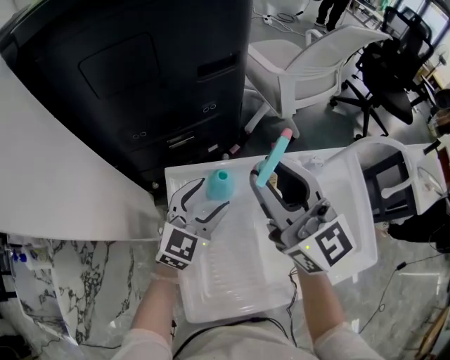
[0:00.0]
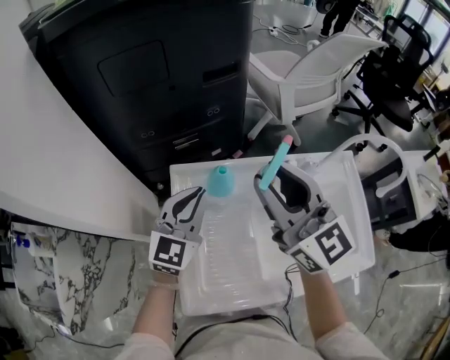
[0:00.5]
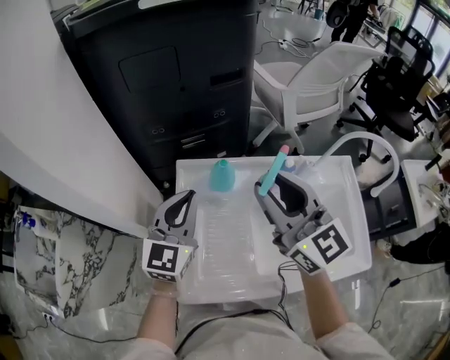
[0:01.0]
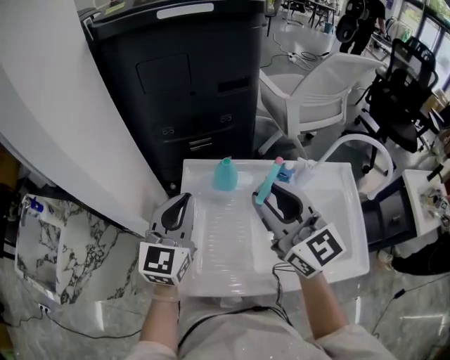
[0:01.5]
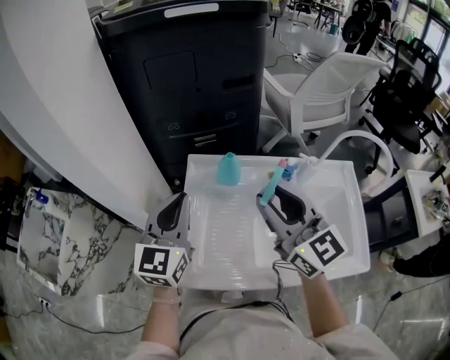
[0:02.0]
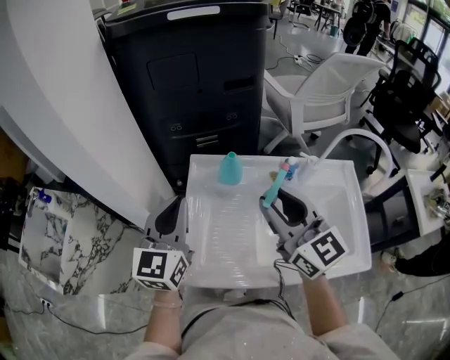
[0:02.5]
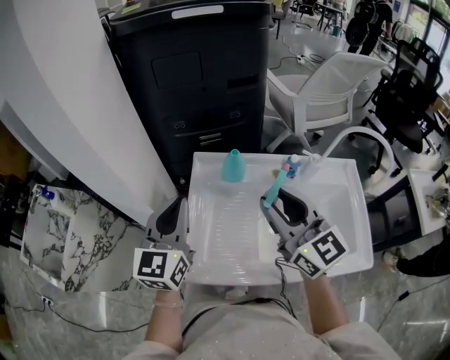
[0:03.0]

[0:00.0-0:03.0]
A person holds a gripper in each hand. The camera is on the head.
0:00.0 to 0:01.5: The left gripper goes about 15 cm upward, backward and to the left, changes its angle by roughly 30 degrees, and closes, while the right gripper travels backward by some 10 cm.
0:01.5 to 0:03.0: The left gripper ends up roughly 5 cm from where it was.

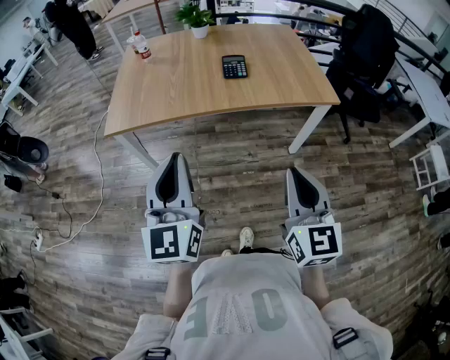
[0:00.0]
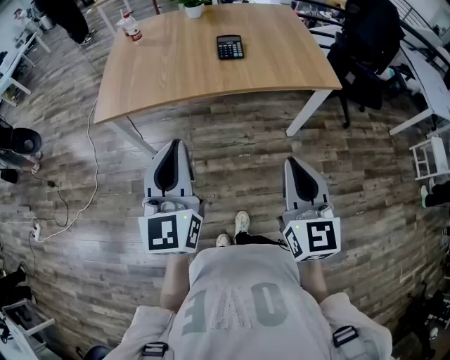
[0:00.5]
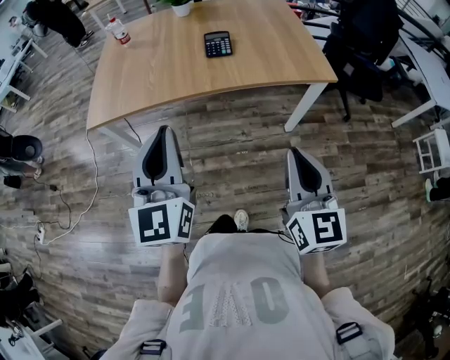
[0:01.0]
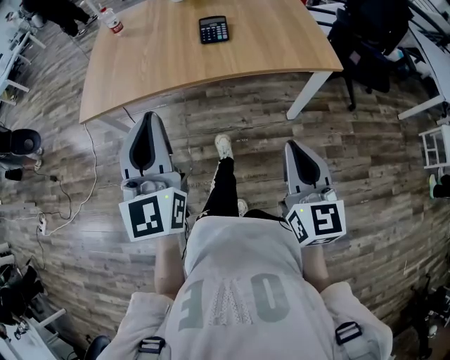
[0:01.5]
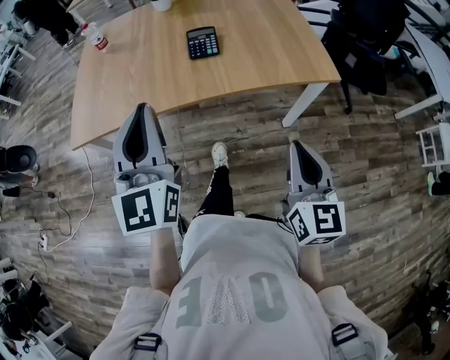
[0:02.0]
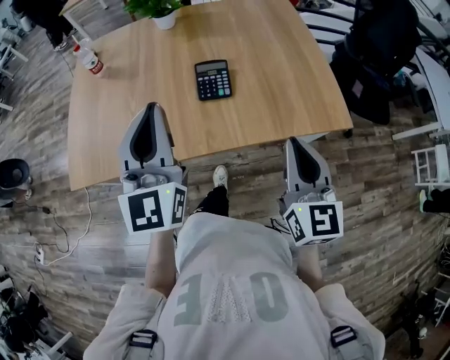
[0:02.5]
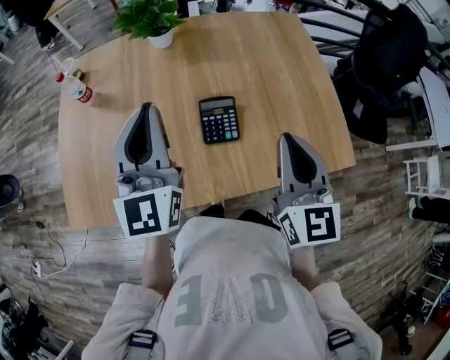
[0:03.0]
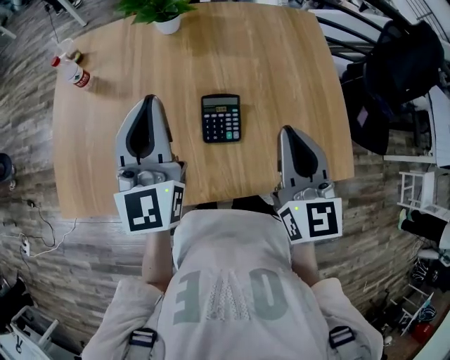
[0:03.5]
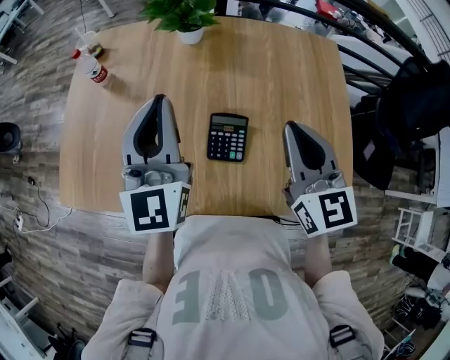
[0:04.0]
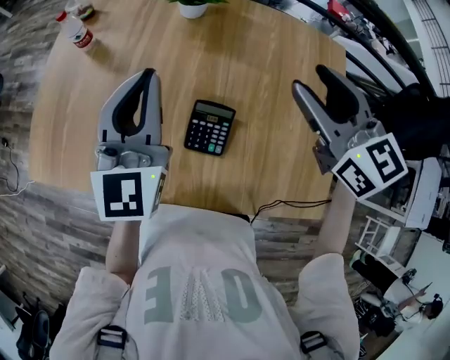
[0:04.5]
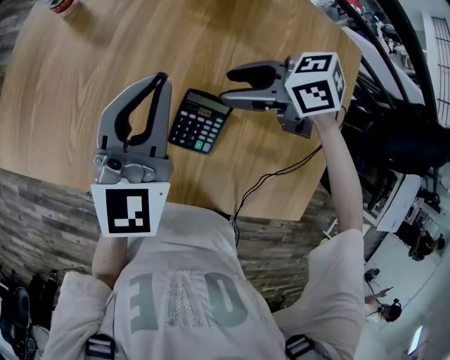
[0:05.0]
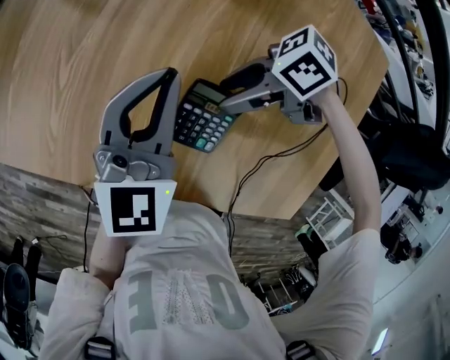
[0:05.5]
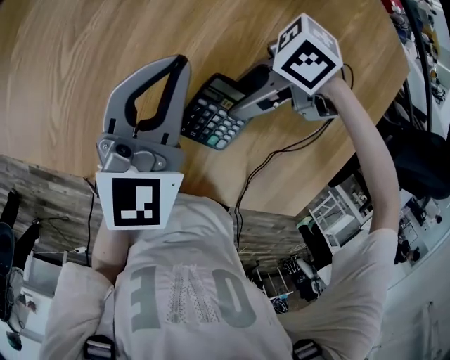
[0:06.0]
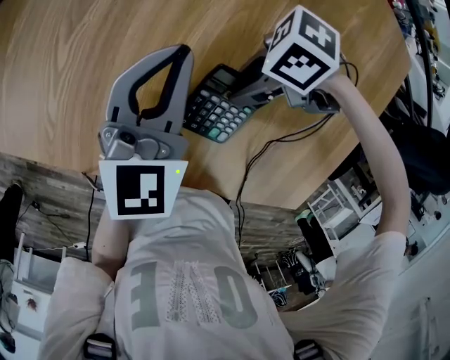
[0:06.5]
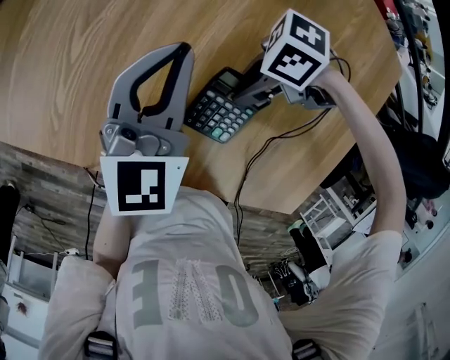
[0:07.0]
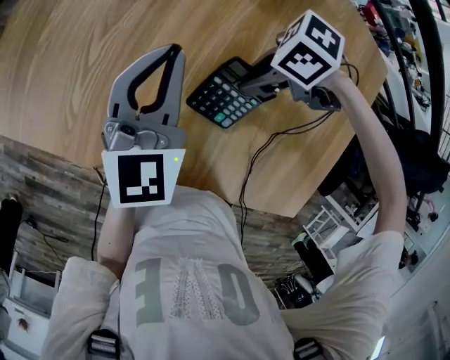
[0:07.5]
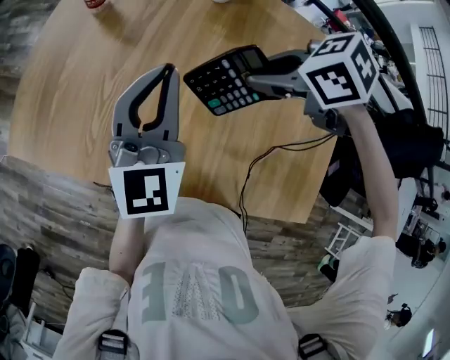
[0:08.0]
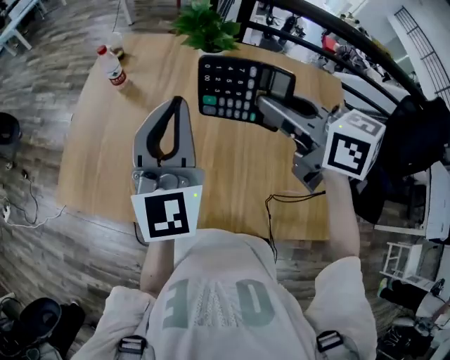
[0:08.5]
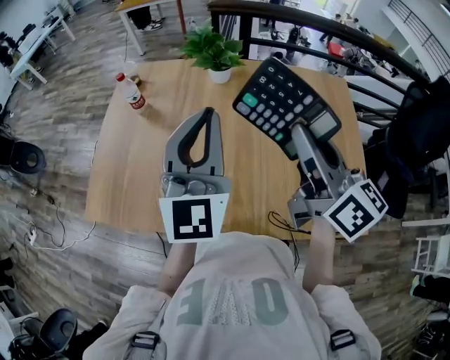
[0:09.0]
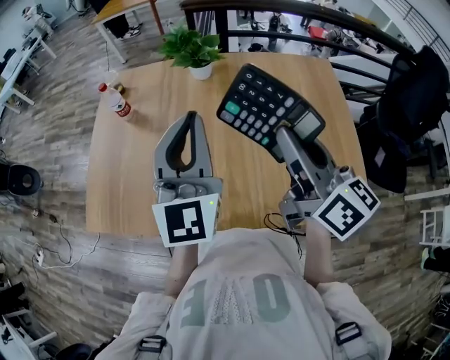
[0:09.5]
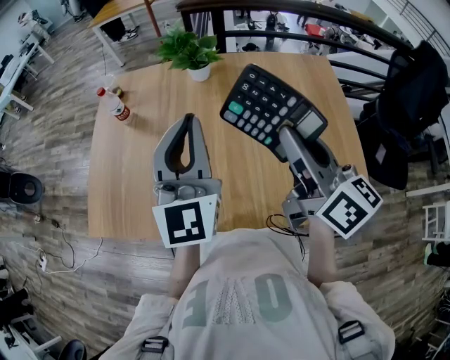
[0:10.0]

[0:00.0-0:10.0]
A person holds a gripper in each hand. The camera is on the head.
0:00.0 to 0:02.0: The left gripper moves forward and to the right, some 20 cm. Meanwhile the right gripper is displaced forward, to the right and downward by some 20 cm.
0:02.0 to 0:04.0: Both grippers are carried forward, about 40 cm. The right gripper rotates roughly 30 degrees.
0:04.0 to 0:06.0: Both grippers travel together downward, approximately 25 cm. The left gripper turns by approximately 30 degrees; the right gripper swivels approximately 130 degrees, and opens.
0:06.0 to 0:08.0: Both grippers travel together upward, about 15 cm. The right gripper angles its fingers downward, by roughly 40 degrees, and closes its fingers.
0:08.0 to 0:10.0: The left gripper goes approximately 10 cm upward. Meanwhile the right gripper ends up roughly 20 cm from where it was, and angles its fingers upward, by some 60 degrees.

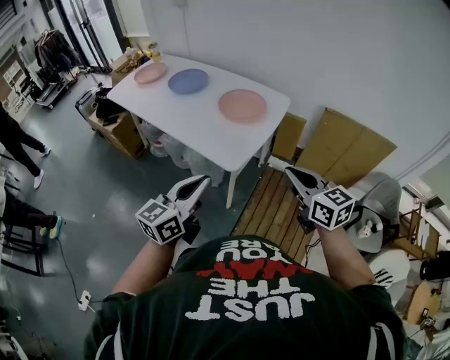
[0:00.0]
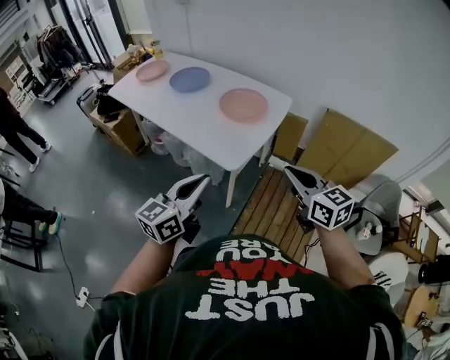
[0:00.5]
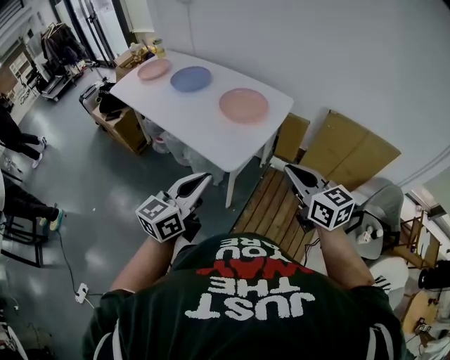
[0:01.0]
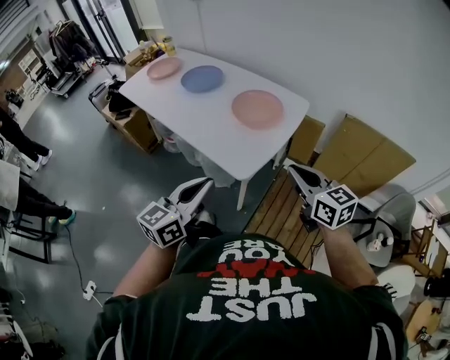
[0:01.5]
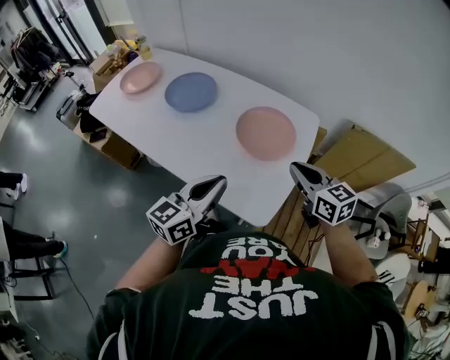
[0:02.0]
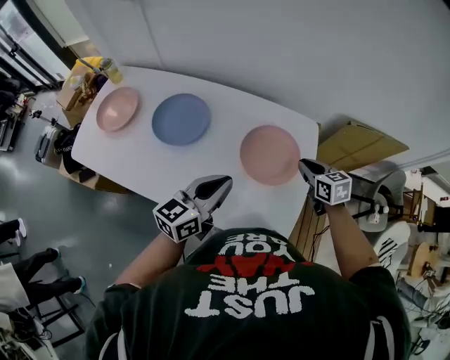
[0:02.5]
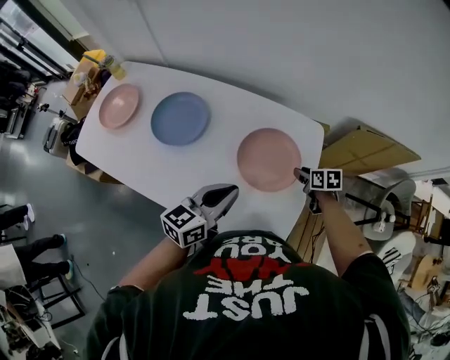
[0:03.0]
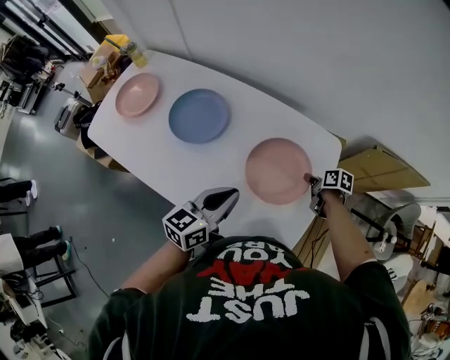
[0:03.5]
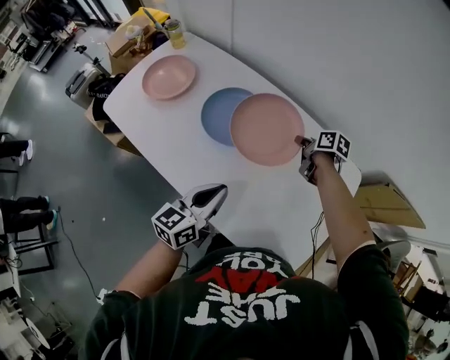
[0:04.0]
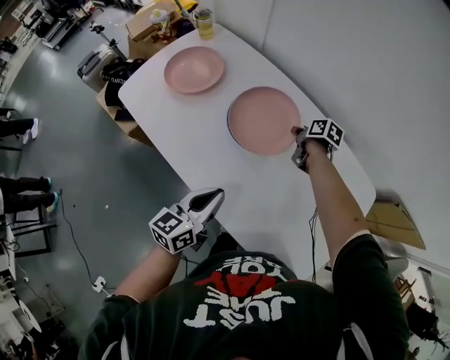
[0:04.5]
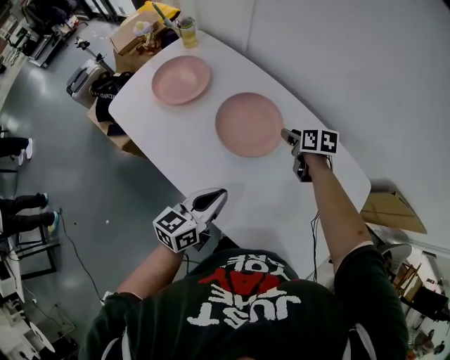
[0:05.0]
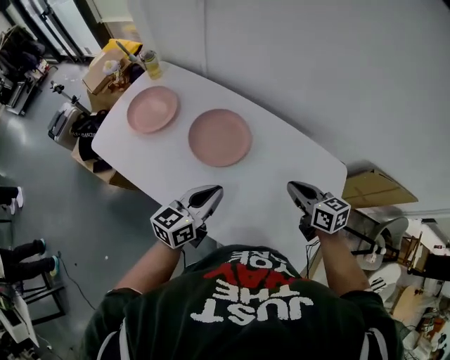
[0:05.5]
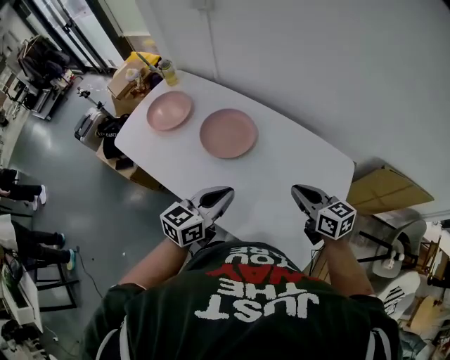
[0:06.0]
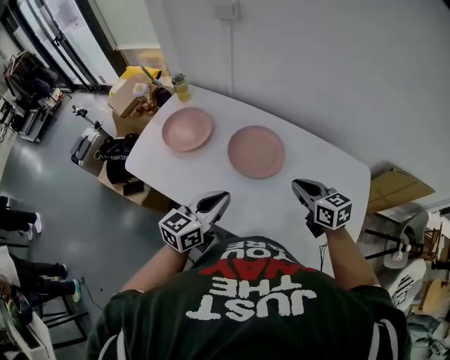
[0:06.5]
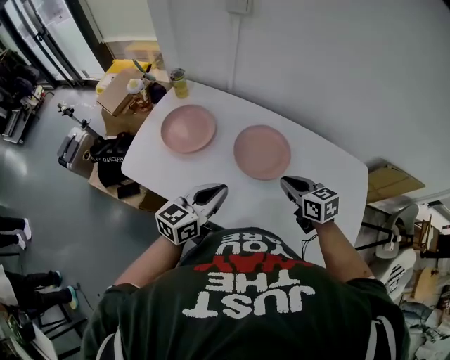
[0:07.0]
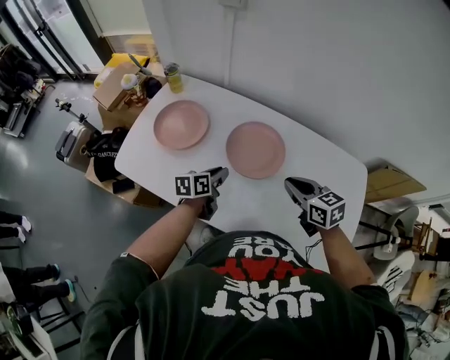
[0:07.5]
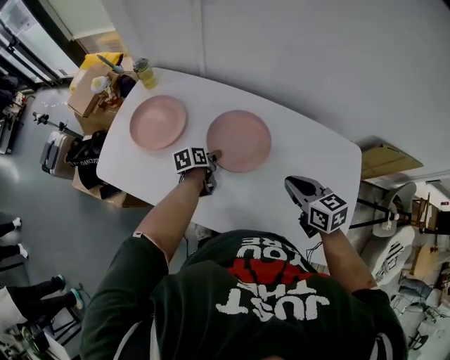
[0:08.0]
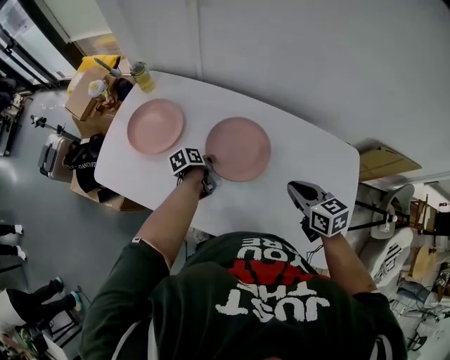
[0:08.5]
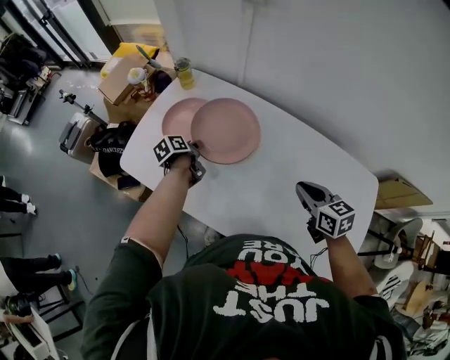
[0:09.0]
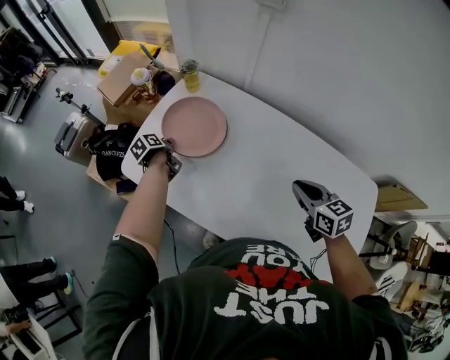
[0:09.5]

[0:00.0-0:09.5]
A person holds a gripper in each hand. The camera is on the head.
0:00.0 to 0:02.0: The two grippers go roughly 25 cm forward.
0:02.0 to 0:04.0: The left gripper heads forward and to the left, covering approximately 25 cm; the right gripper shifts some 40 cm forward, to the left and downward, rotates around the line of its fingers by some 40 degrees, clockwise from behind, and opens and closes again.
0:04.0 to 0:05.5: The left gripper reaches approximately 10 cm to the left, then returns; the right gripper shifts about 20 cm backward and upward, turns by roughly 40 degrees, and opens, then closes once more.
0:05.5 to 0:07.5: The left gripper is displaced to the left, downward and forward by about 25 cm, and rotates about 30 degrees; the right gripper moves to the left, roughly 15 cm.
0:07.5 to 0:09.5: The right gripper shifts approximately 10 cm forward and to the left. Meanwhile the left gripper shifts approximately 35 cm to the left and forward, changes its angle by roughly 50 degrees, and opens, then closes once more.

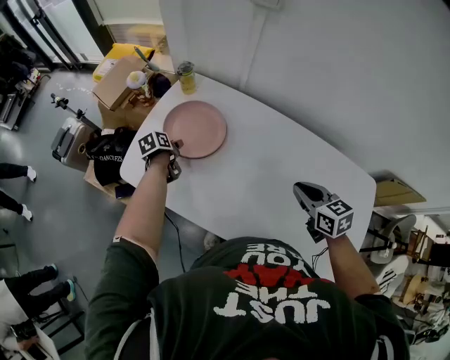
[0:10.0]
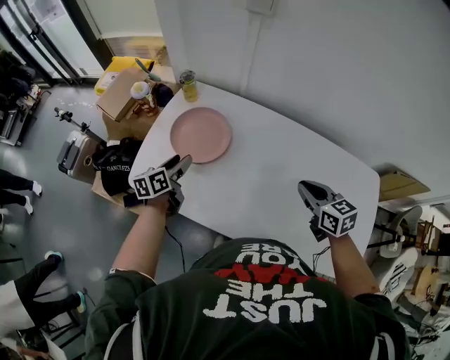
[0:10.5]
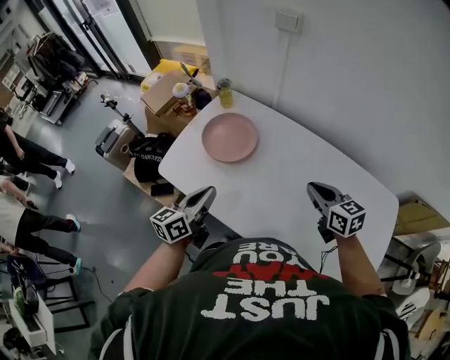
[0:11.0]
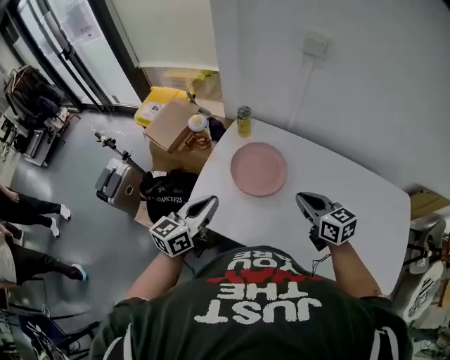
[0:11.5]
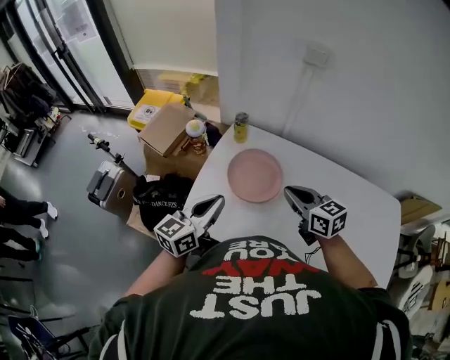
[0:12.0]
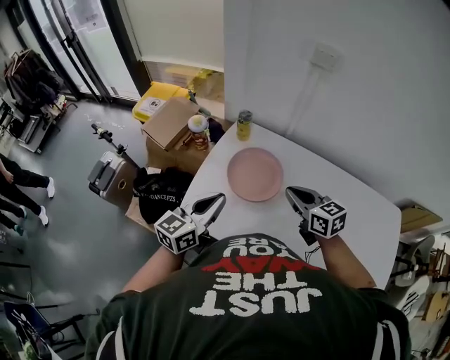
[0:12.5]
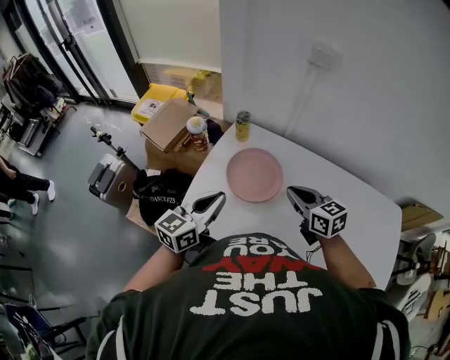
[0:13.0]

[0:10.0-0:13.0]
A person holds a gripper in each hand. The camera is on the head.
0:10.0 to 0:11.5: The right gripper moves to the left, about 20 cm; the left gripper heads upward and backward, covering approximately 30 cm, tilts its fingers approximately 50 degrees upward, and closes.
0:11.5 to 0:13.0: The right gripper changes place by about 5 cm.
